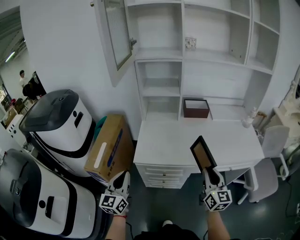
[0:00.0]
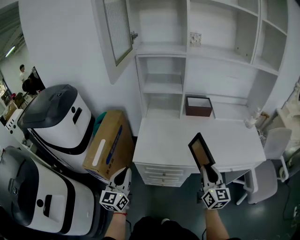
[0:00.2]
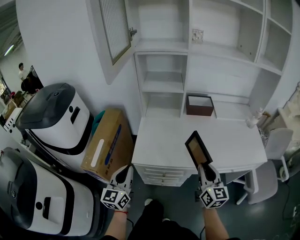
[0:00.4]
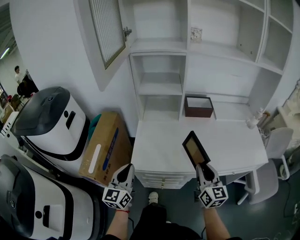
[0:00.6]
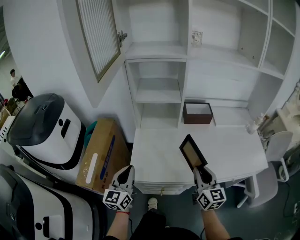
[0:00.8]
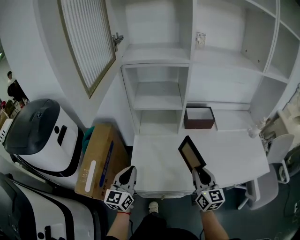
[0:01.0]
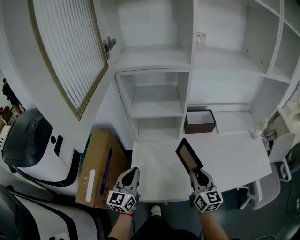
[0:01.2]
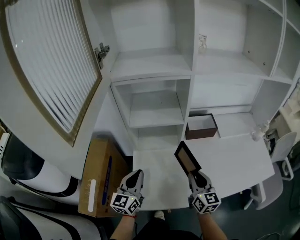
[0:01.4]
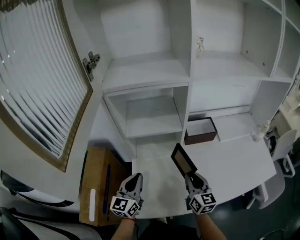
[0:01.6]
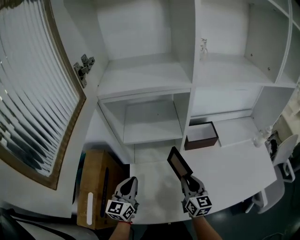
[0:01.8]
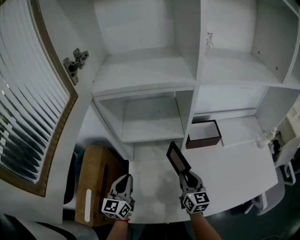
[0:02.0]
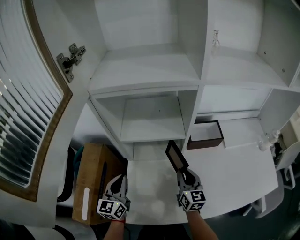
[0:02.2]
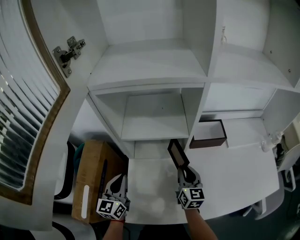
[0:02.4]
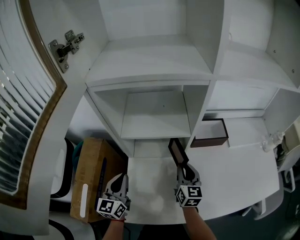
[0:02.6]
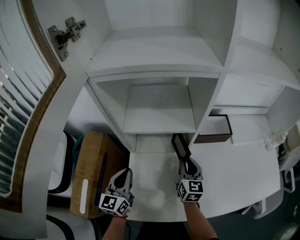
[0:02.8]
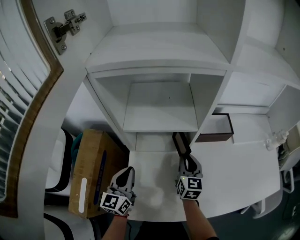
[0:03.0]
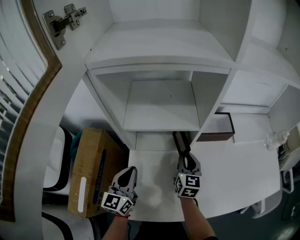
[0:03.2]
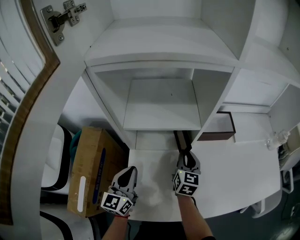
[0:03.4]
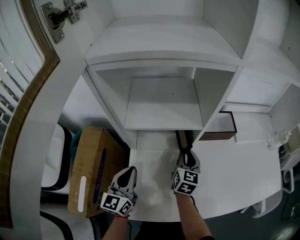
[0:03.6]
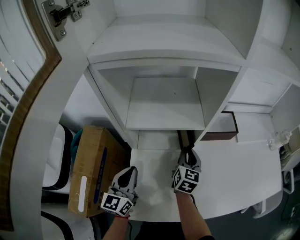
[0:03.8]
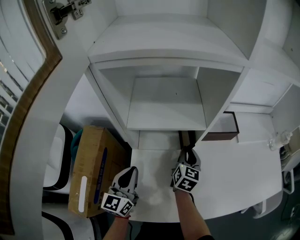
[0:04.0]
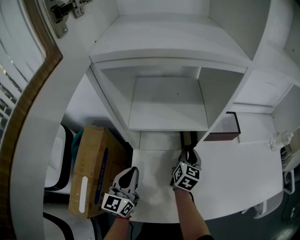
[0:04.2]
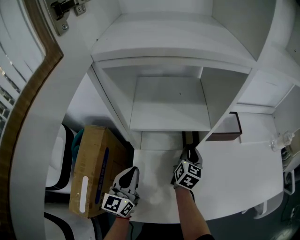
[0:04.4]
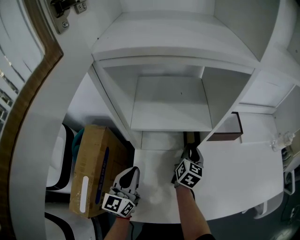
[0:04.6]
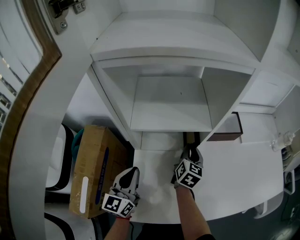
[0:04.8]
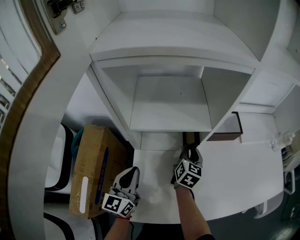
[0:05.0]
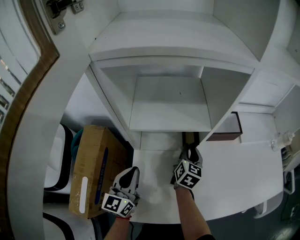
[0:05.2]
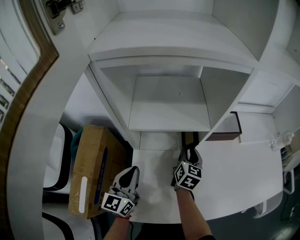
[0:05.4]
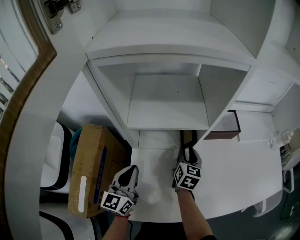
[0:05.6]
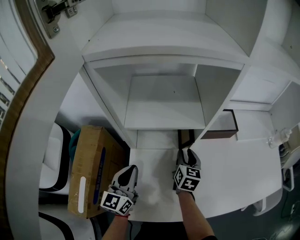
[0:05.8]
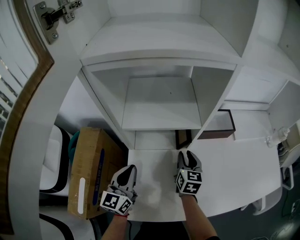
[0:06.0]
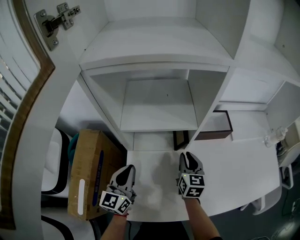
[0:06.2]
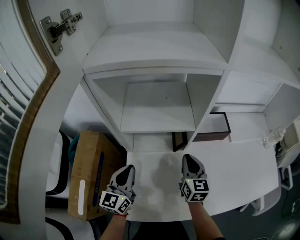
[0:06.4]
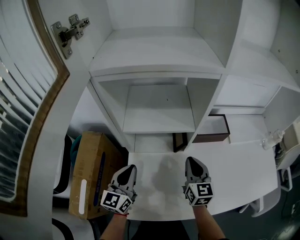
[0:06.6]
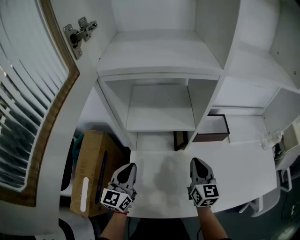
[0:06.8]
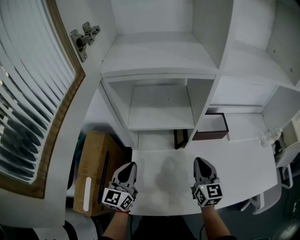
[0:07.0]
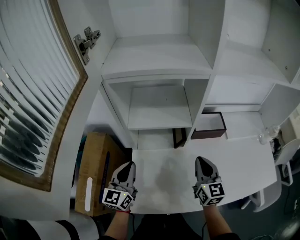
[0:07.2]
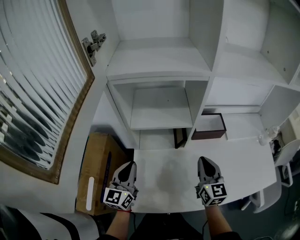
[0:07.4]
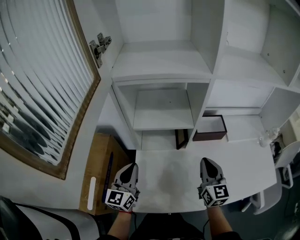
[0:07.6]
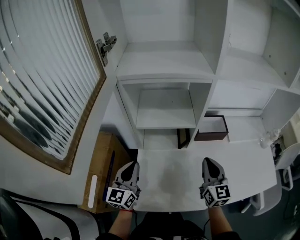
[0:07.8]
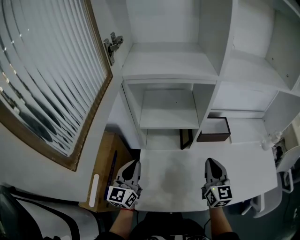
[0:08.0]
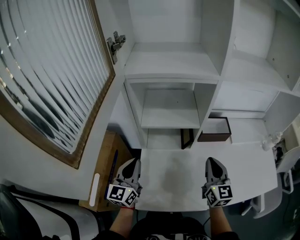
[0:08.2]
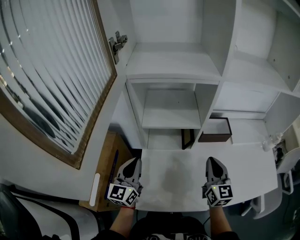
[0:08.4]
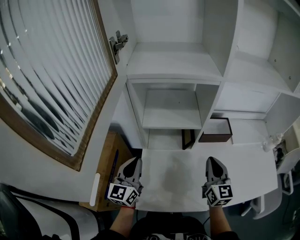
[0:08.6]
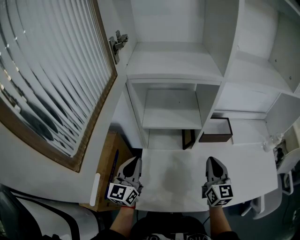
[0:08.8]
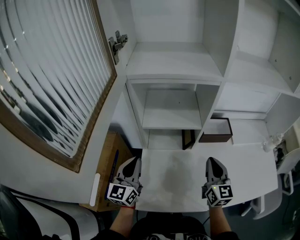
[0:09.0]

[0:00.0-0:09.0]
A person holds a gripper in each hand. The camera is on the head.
0:00.0 to 0:01.6: Both grippers travel together forward, some 35 cm.
0:01.6 to 0:03.0: The left gripper is displaced downward by about 5 cm; the right gripper shifts roughly 15 cm forward and downward.
0:03.0 to 0:04.4: The right gripper ends up about 5 cm from where it was.
0:04.4 to 0:06.0: The grippers make only small movements.
0:06.0 to 0:07.6: The left gripper moves upward, about 10 cm. The right gripper heads upward, backward and to the right, covering about 20 cm, turns by about 20 degrees, and closes up.
0:07.6 to 0:09.0: The grippers move only a little.

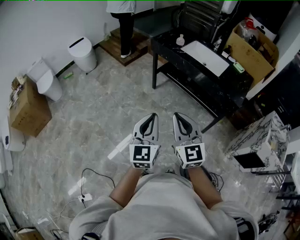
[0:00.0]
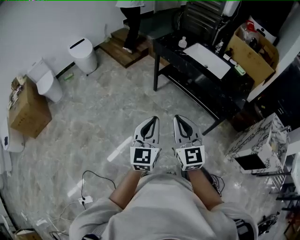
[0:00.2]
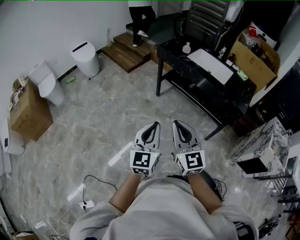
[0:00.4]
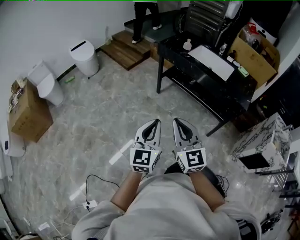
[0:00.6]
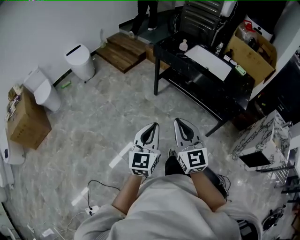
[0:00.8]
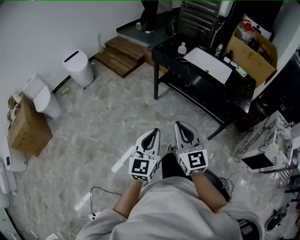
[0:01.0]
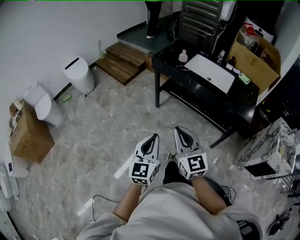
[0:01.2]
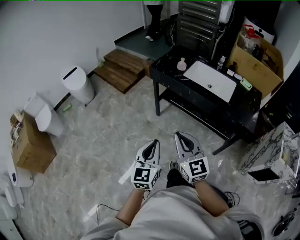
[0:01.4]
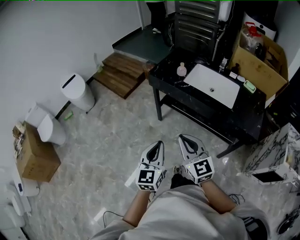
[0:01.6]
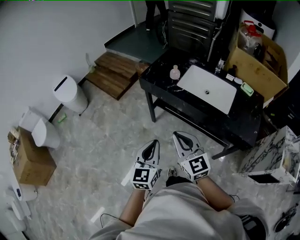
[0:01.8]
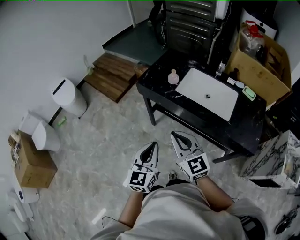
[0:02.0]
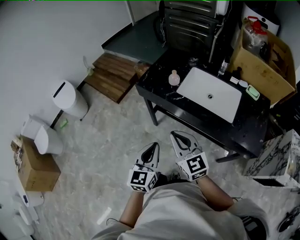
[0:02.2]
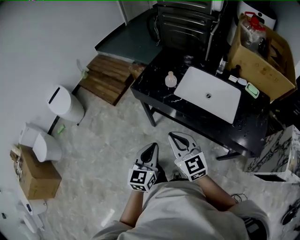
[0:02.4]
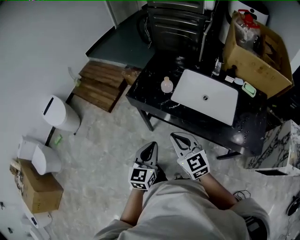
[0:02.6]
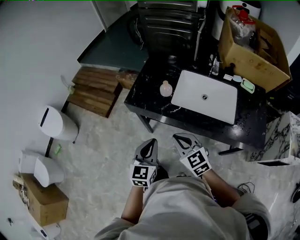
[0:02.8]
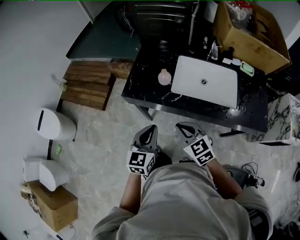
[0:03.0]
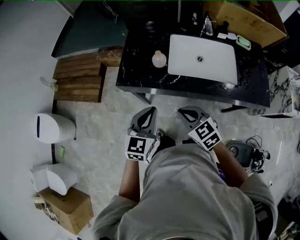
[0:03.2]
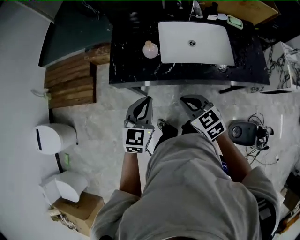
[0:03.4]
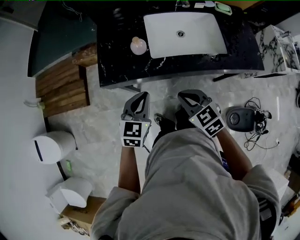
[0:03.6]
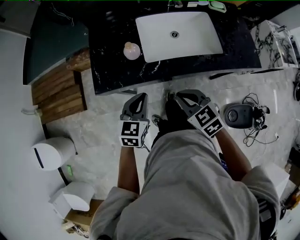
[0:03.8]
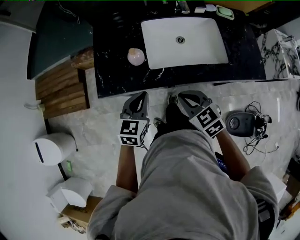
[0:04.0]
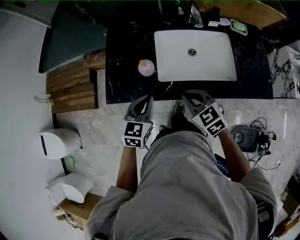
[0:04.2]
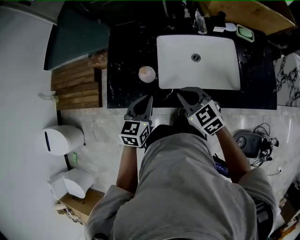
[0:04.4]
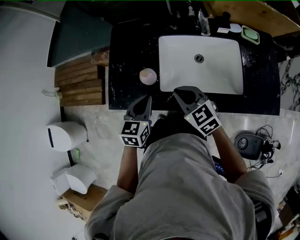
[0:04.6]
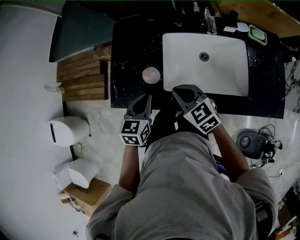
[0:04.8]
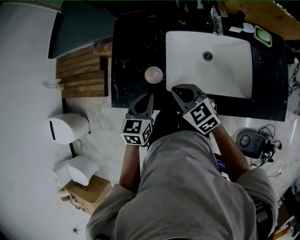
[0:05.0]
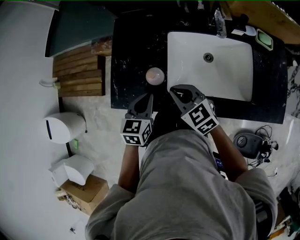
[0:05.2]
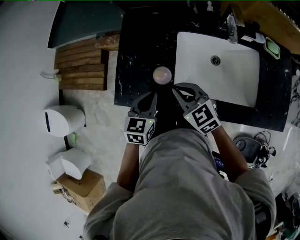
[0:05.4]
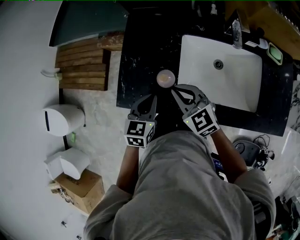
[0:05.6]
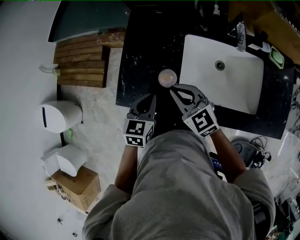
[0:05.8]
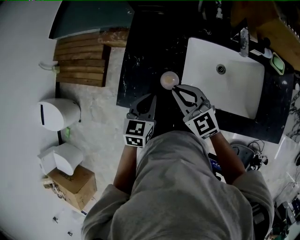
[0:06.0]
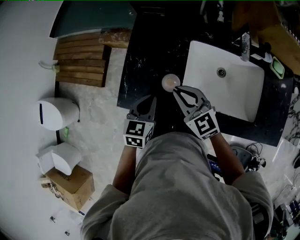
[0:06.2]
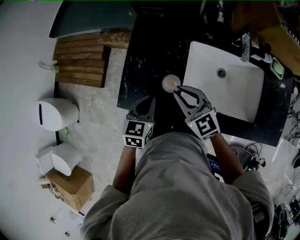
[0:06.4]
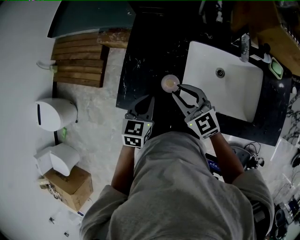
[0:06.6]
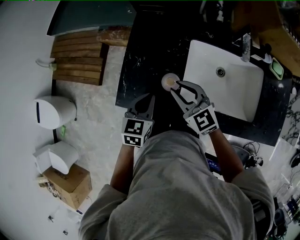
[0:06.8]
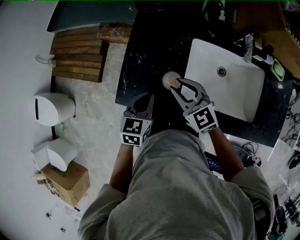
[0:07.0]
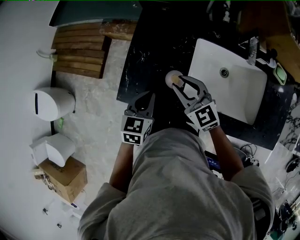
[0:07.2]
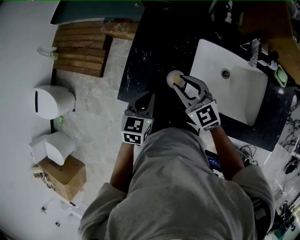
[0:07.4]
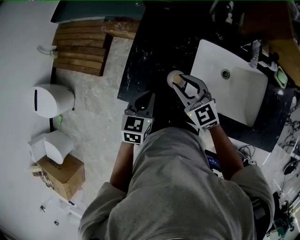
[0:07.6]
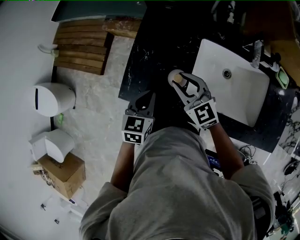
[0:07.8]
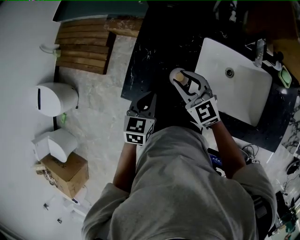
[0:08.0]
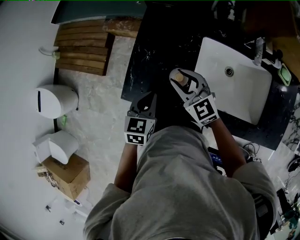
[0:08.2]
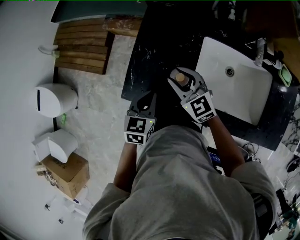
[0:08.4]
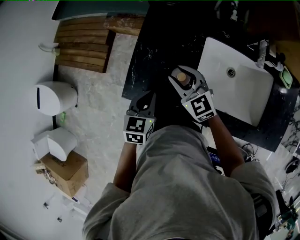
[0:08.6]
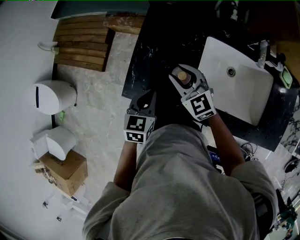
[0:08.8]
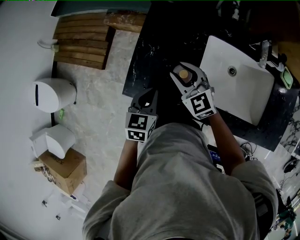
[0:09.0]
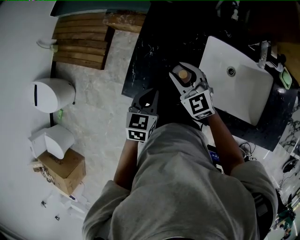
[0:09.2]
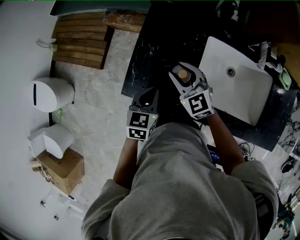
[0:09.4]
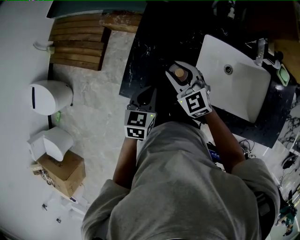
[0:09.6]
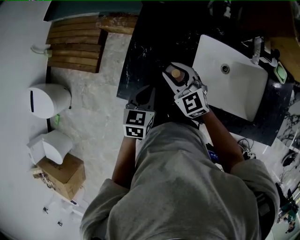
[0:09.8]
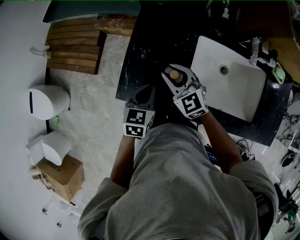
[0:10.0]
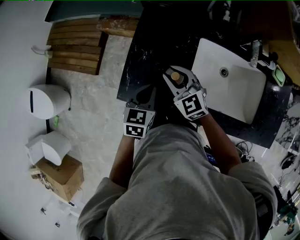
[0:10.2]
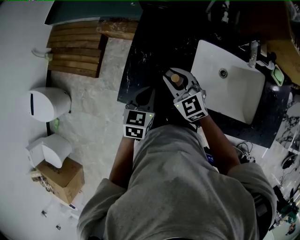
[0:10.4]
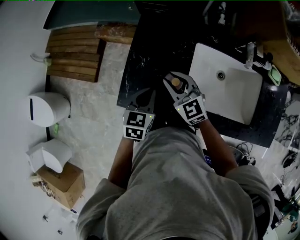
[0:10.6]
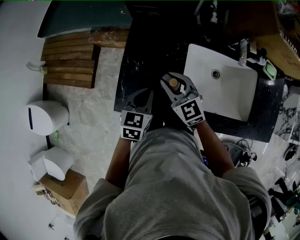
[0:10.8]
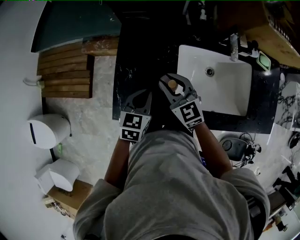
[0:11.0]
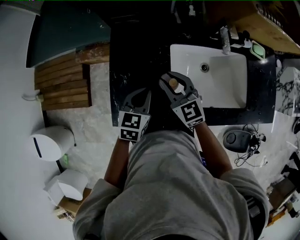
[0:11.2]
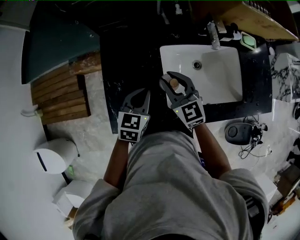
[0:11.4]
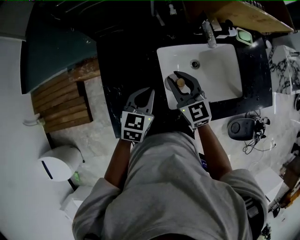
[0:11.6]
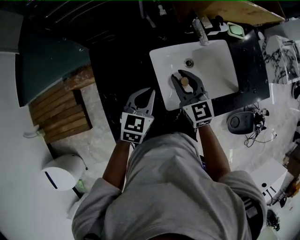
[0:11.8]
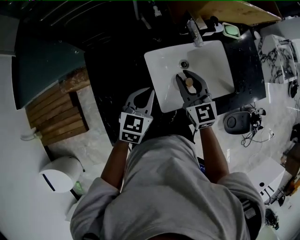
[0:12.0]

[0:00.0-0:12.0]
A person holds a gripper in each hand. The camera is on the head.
0:00.0 to 0:01.6: Both grippers move forward, approximately 25 cm.
0:01.6 to 0:03.0: The two grippers go roughly 35 cm forward. The right gripper changes its angle by about 30 degrees. The left gripper rotates approximately 30 degrees.
0:03.0 to 0:04.4: Both grippers travel together forward, roughly 20 cm.
0:04.4 to 0:06.0: Both grippers travel together forward and to the left, roughly 10 cm.
0:06.0 to 0:07.6: The right gripper opens its fingers.
0:07.6 to 0:09.0: The right gripper changes place by about 5 cm.
0:09.0 to 0:10.4: The grippers stay close to where they were, moving slightly.
0:10.4 to 0:12.0: The right gripper shifts by approximately 20 cm, and changes its angle by about 50 degrees; the left gripper shifts by roughly 15 cm, and swivels about 40 degrees.

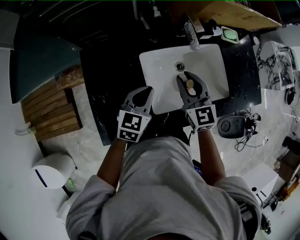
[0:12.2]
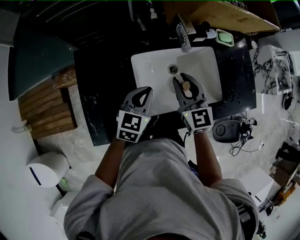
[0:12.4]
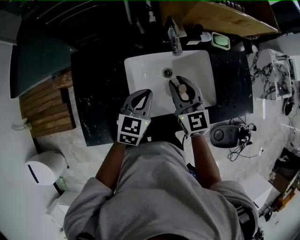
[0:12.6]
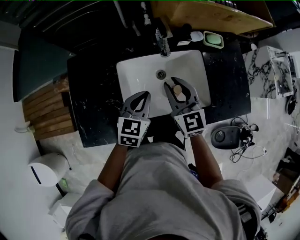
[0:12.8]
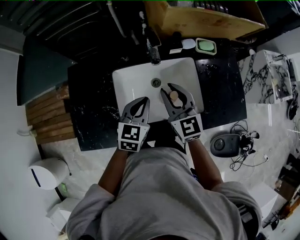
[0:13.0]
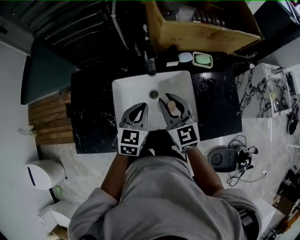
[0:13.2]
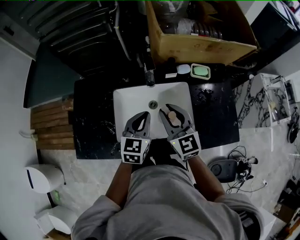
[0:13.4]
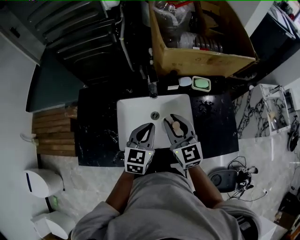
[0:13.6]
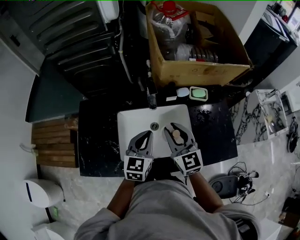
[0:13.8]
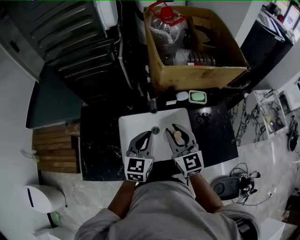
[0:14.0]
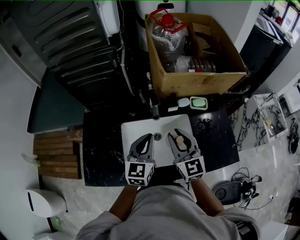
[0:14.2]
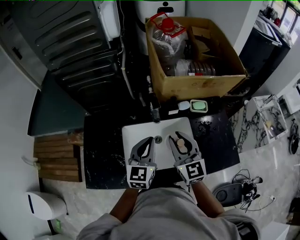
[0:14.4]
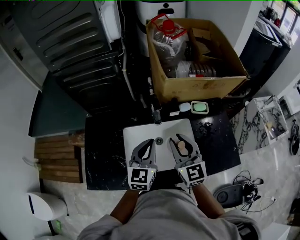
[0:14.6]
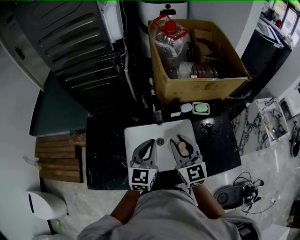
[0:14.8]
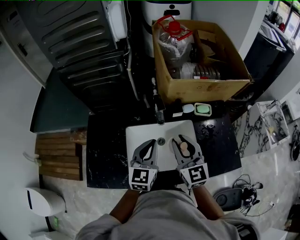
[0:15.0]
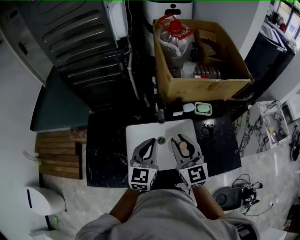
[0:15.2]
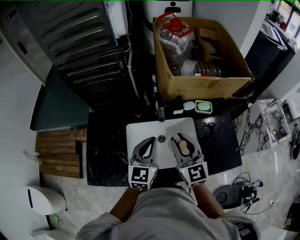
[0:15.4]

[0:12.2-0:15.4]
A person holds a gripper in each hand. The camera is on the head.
0:12.2 to 0:13.8: Both grippers travel together to the right and upward, approximately 20 cm. The left gripper rotates some 20 degrees.
0:13.8 to 0:15.4: The left gripper moves upward, approximately 5 cm.
